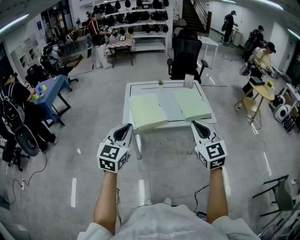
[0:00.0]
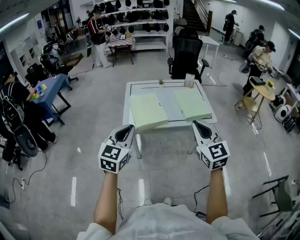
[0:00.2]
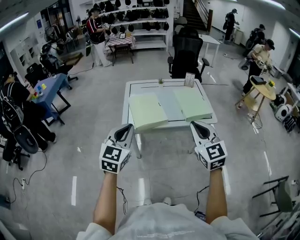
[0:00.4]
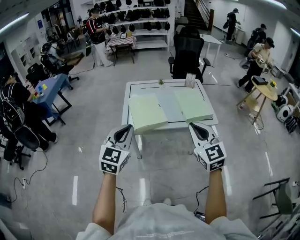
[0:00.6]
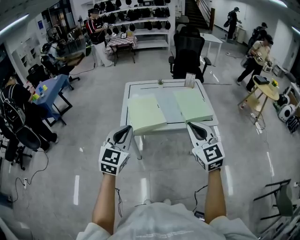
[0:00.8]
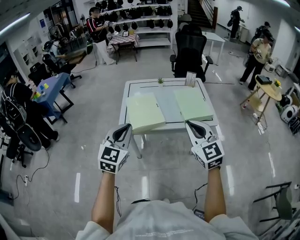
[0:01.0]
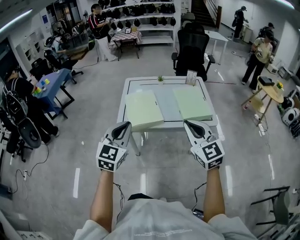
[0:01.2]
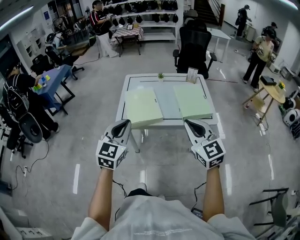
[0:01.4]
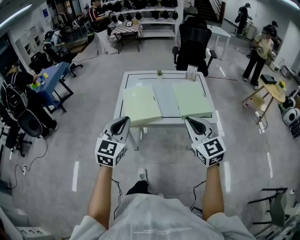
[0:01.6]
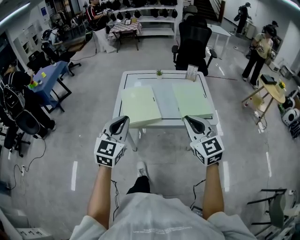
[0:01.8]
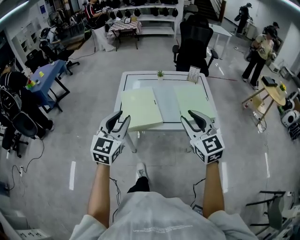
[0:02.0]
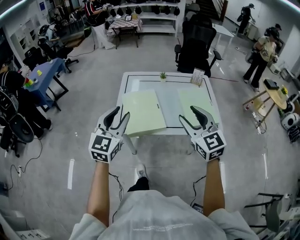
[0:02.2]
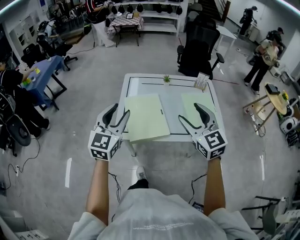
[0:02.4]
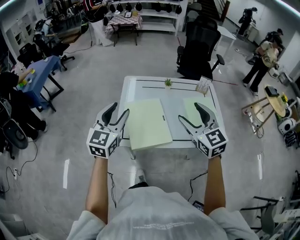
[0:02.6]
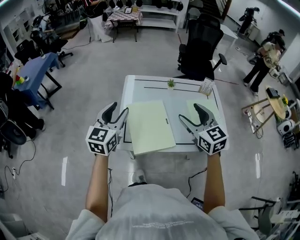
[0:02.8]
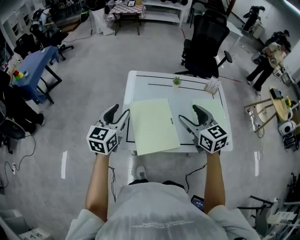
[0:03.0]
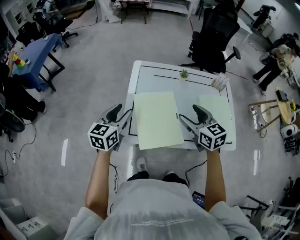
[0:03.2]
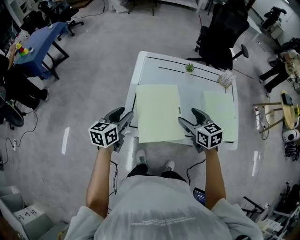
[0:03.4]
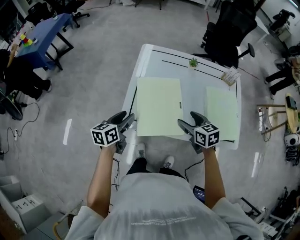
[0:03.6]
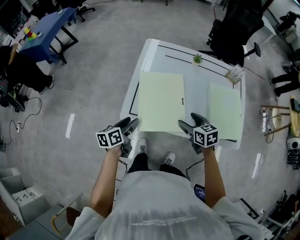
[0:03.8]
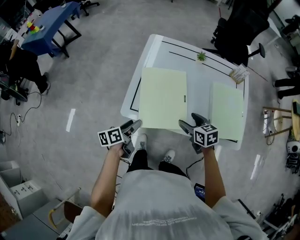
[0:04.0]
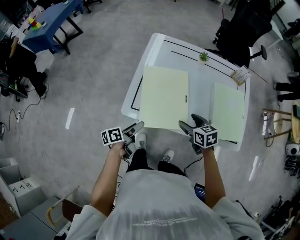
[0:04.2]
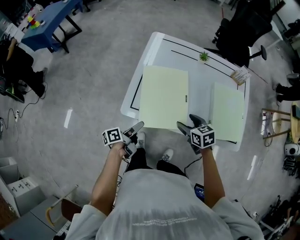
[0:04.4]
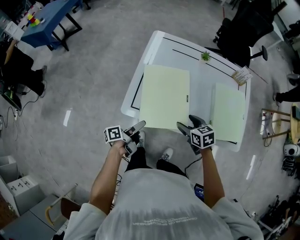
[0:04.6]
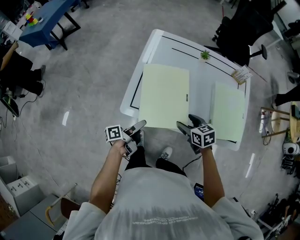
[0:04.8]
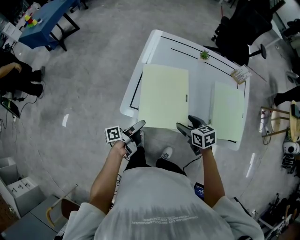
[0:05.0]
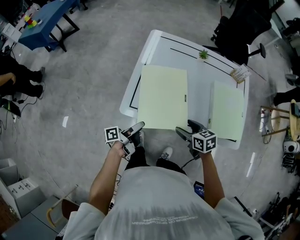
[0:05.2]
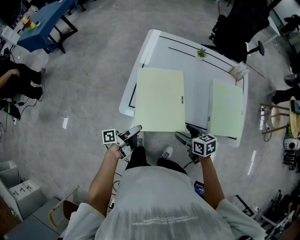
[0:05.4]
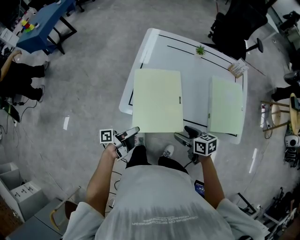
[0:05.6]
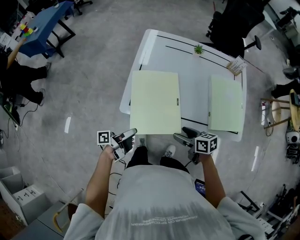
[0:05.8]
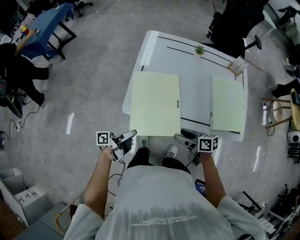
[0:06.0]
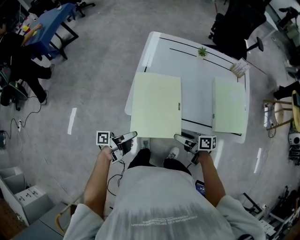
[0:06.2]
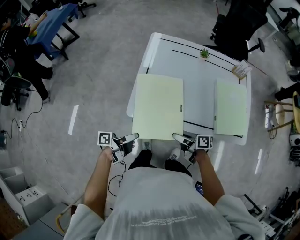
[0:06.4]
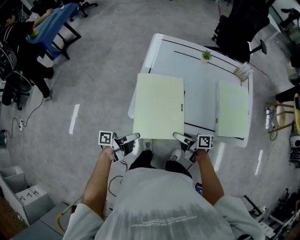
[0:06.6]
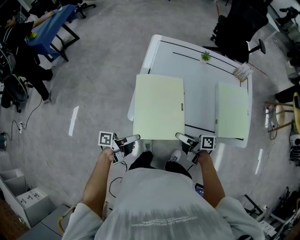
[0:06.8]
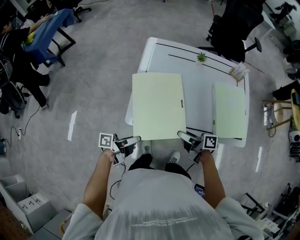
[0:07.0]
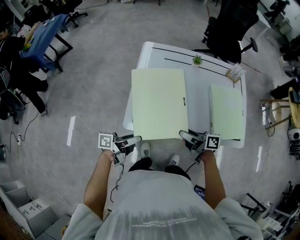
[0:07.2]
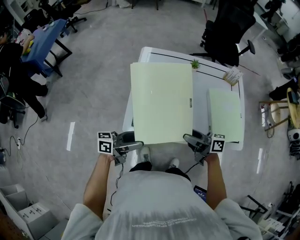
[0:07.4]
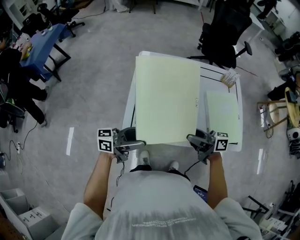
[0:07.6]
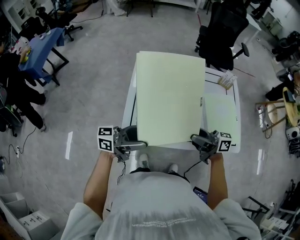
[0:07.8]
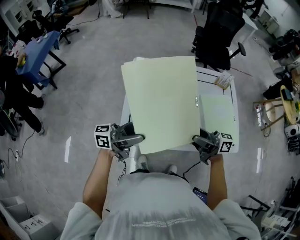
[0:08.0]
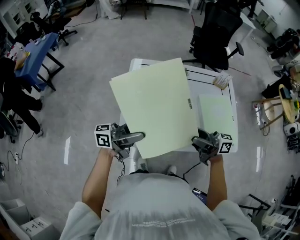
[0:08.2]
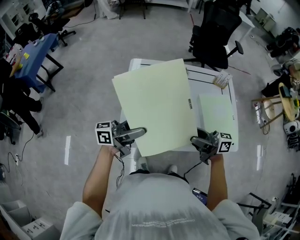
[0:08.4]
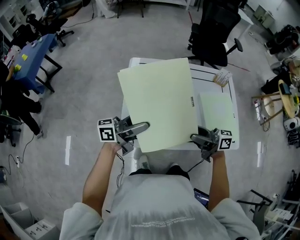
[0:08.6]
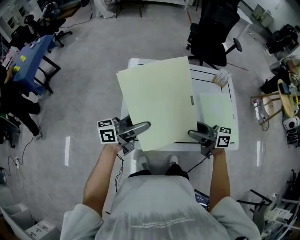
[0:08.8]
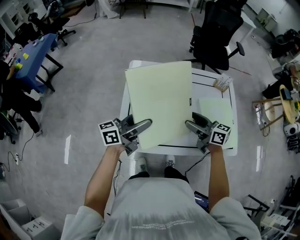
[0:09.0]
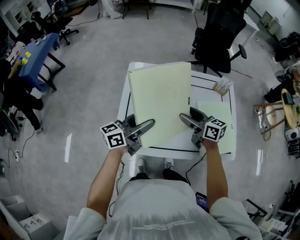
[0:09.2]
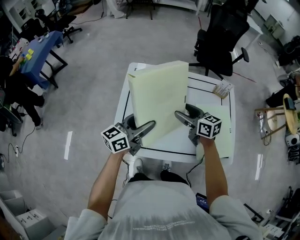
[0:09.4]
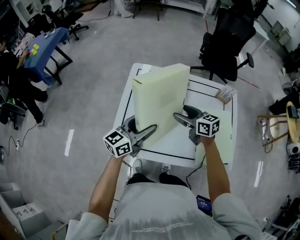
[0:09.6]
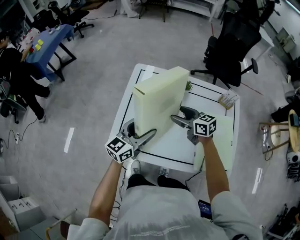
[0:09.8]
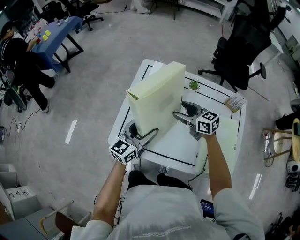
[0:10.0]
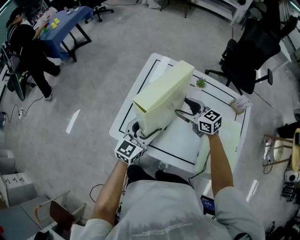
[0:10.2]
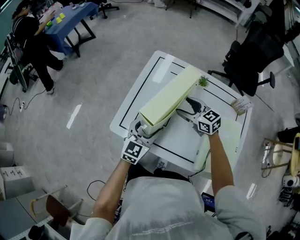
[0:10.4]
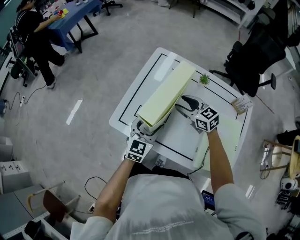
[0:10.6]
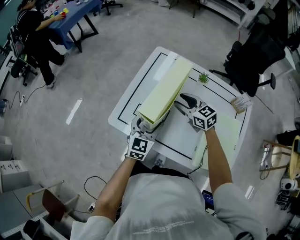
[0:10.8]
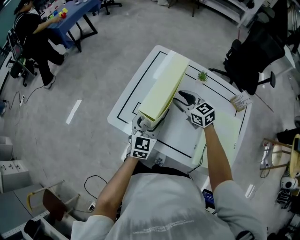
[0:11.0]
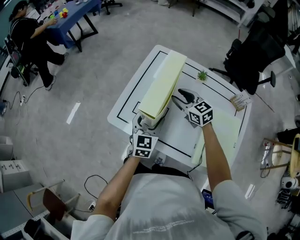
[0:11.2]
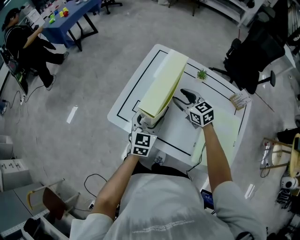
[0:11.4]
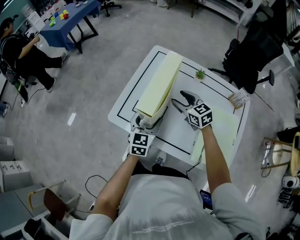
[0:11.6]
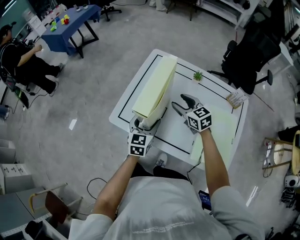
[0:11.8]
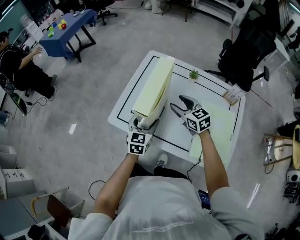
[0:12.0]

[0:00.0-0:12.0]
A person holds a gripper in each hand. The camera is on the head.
0:00.0 to 0:01.6: The right gripper moves forward and to the right, about 10 cm. The left gripper is displaced to the right and forward by approximately 10 cm.
0:01.6 to 0:03.0: The right gripper travels forward by about 35 cm, and opens up; the left gripper is displaced forward and to the left by about 35 cm, changes its angle by about 20 degrees, and opens up.
0:03.0 to 0:04.4: The left gripper is displaced downward and backward by approximately 30 cm, and rotates around the line of its fingers by about 80 degrees, counterclockwise from behind, while the right gripper is displaced downward by some 25 cm, and changes its angle by approximately 30 degrees.
0:04.4 to 0:06.0: The left gripper travels backward by roughly 5 cm, and swivels roughly 20 degrees; the right gripper is displaced backward by about 10 cm, and turns by approximately 40 degrees.
0:06.0 to 0:07.6: The grippers both shift upward by roughly 15 cm. The left gripper twists roughly 40 degrees clockwise, seen from behind, while the right gripper rotates about 30 degrees.
0:07.6 to 0:09.0: The right gripper moves some 10 cm, and changes its angle by roughly 30 degrees. The left gripper changes place by roughly 15 cm.
0:09.0 to 0:10.4: The left gripper shifts about 10 cm downward, and changes its angle by some 70 degrees. Meanwhile the right gripper ends up roughly 15 cm from where it was, and turns by some 40 degrees.
0:10.4 to 0:12.0: The left gripper changes its angle by some 20 degrees; the right gripper is displaced backward by about 5 cm.

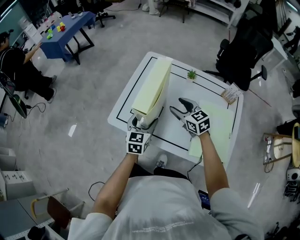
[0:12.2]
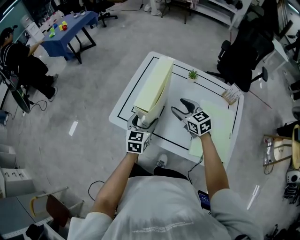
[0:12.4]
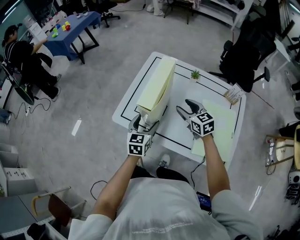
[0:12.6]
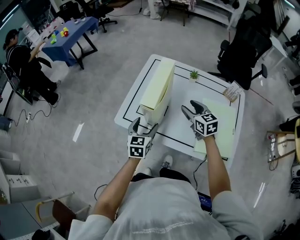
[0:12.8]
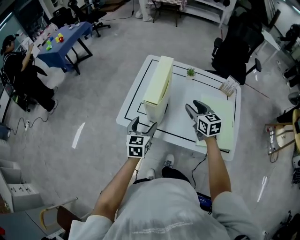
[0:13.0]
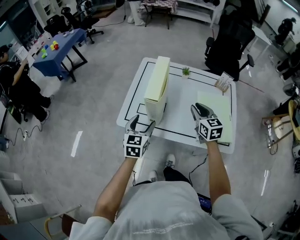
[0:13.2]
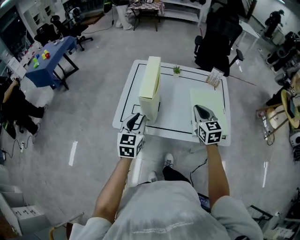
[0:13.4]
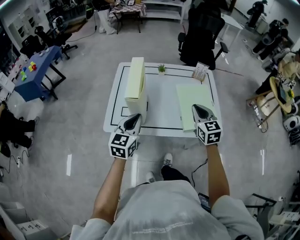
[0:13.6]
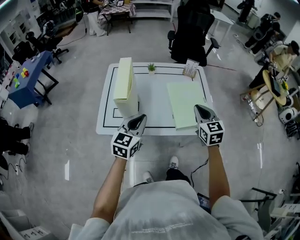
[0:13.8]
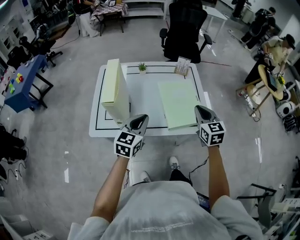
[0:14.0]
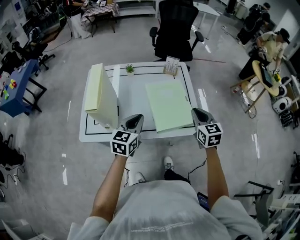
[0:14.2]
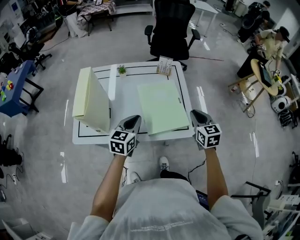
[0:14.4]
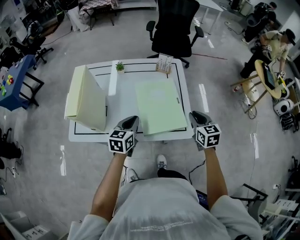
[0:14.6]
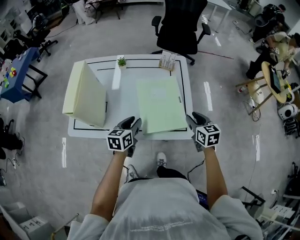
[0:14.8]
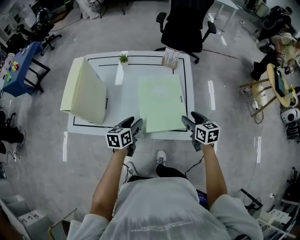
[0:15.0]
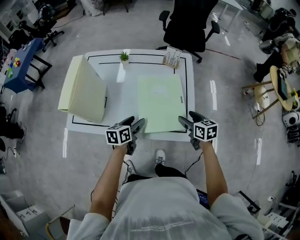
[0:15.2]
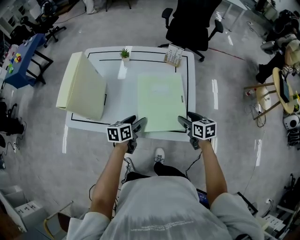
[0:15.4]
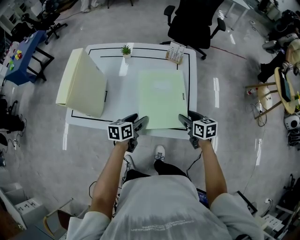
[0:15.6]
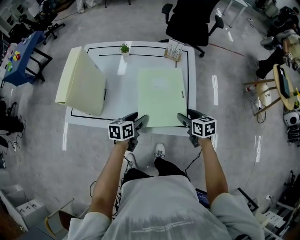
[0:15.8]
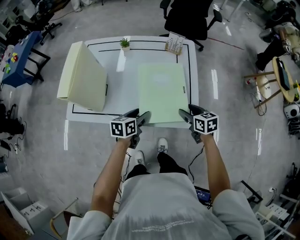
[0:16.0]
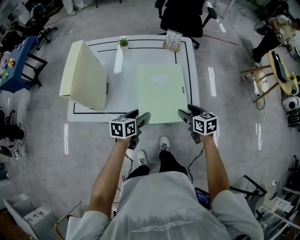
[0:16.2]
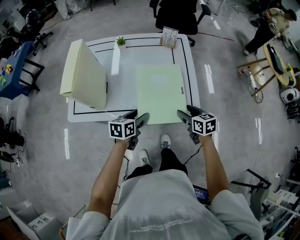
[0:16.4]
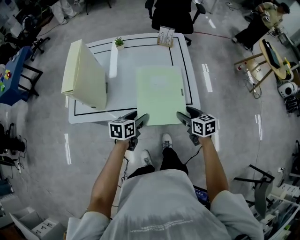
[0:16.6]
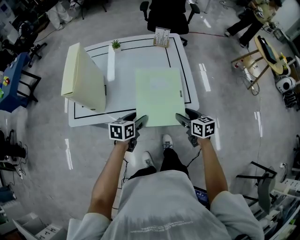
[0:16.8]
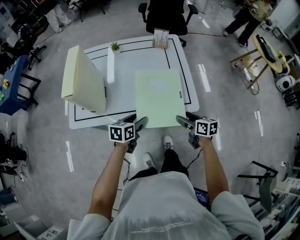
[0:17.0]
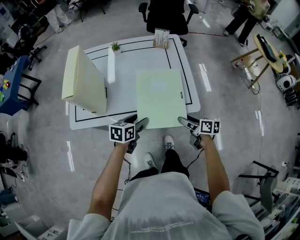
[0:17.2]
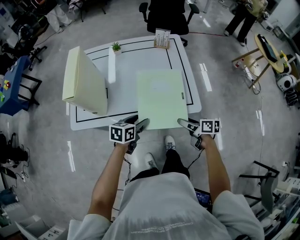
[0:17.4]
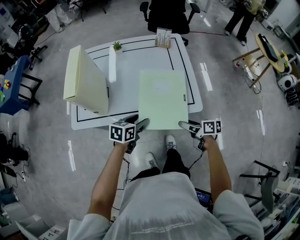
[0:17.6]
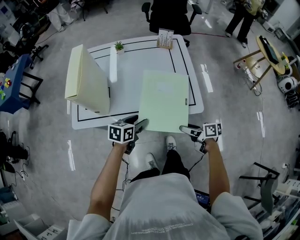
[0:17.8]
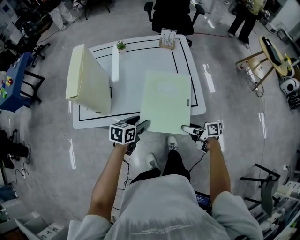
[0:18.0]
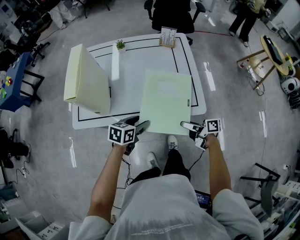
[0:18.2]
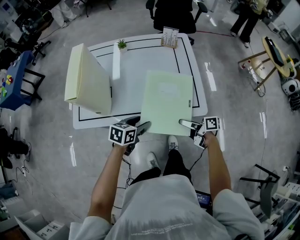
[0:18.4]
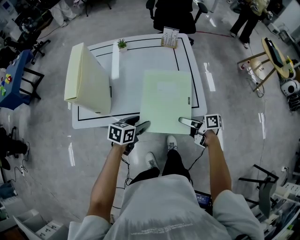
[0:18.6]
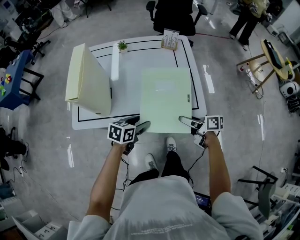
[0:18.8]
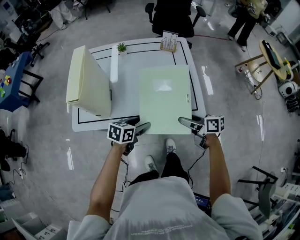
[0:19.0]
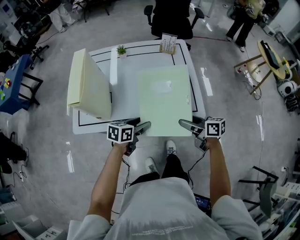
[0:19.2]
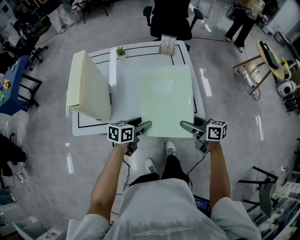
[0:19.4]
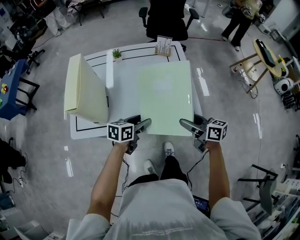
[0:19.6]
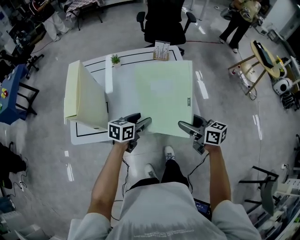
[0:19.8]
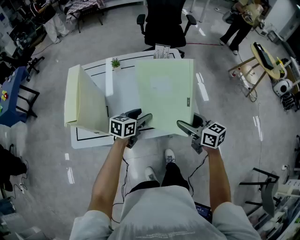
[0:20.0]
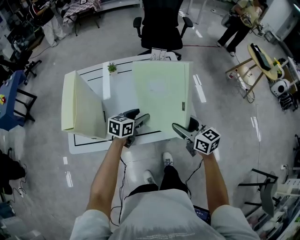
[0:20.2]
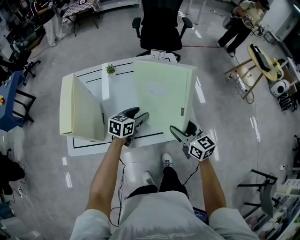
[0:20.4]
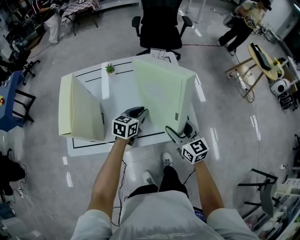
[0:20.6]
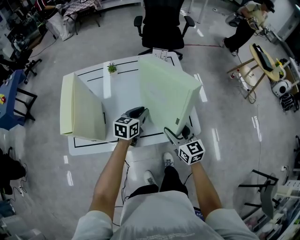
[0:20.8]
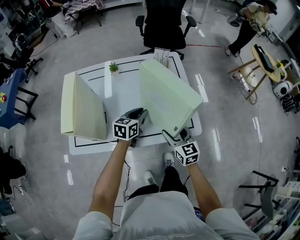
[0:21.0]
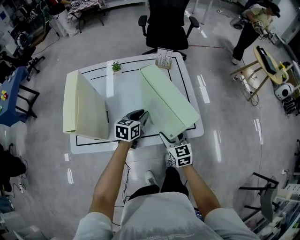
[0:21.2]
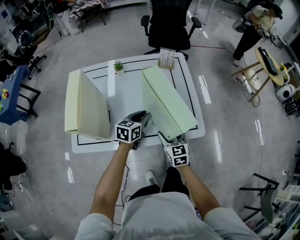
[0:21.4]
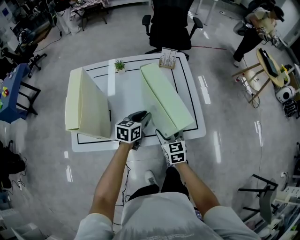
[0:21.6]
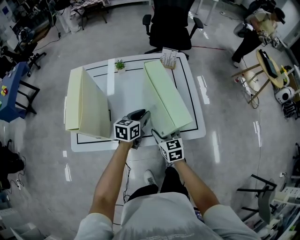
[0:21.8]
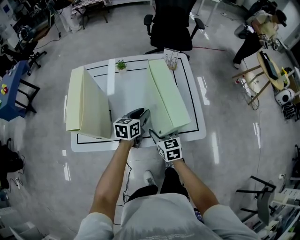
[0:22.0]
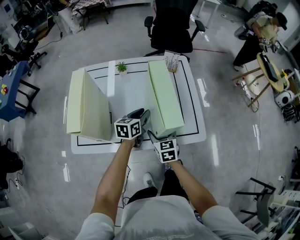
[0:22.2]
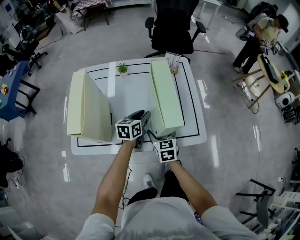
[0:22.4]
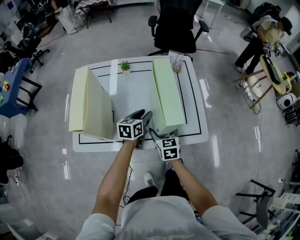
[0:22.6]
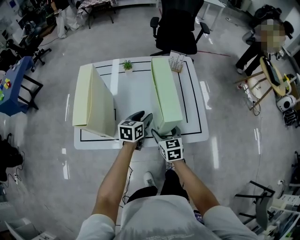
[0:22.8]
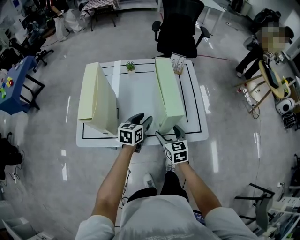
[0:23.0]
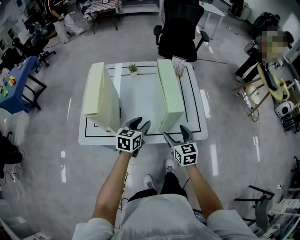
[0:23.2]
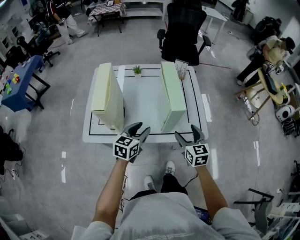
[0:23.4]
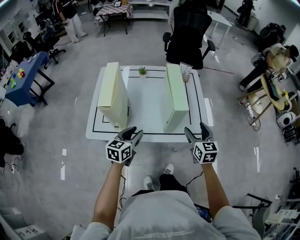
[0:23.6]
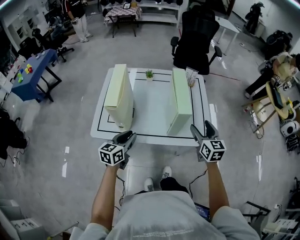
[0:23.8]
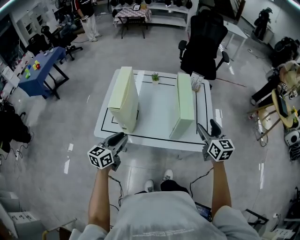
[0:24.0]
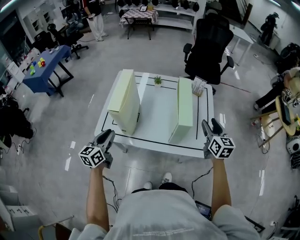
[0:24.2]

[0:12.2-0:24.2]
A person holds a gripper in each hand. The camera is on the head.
0:12.2 to 0:13.8: The right gripper shifts by about 30 cm, rotates about 50 degrees, and closes its fingers; the left gripper shifts by roughly 20 cm, rotates approximately 30 degrees, and closes up.
0:13.8 to 0:15.2: Both grippers travel together downward, to the right and forward, some 25 cm. The left gripper turns by some 40 degrees, and opens up, while the right gripper turns by some 40 degrees, and opens.
0:15.2 to 0:16.6: The right gripper shifts about 15 cm backward and to the left; the left gripper is displaced backward by some 10 cm.
0:16.6 to 0:18.2: The right gripper changes place by approximately 5 cm, and rotates some 50 degrees.
0:18.2 to 0:19.8: The right gripper shifts about 15 cm upward and forward, and swivels some 40 degrees; the left gripper shifts approximately 10 cm forward.
0:19.8 to 0:21.2: The right gripper heads downward and to the left, covering about 10 cm, and changes its angle by some 40 degrees; the left gripper shifts some 10 cm forward, and closes up.
0:21.2 to 0:22.6: The right gripper shifts about 10 cm to the left.
0:22.6 to 0:24.2: The right gripper is displaced upward and to the right by roughly 25 cm. The left gripper heads to the left, backward and upward, covering roughly 35 cm, and swivels some 30 degrees.
